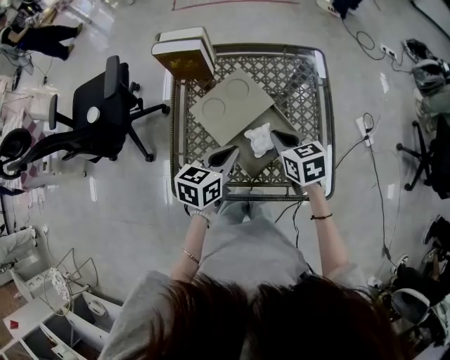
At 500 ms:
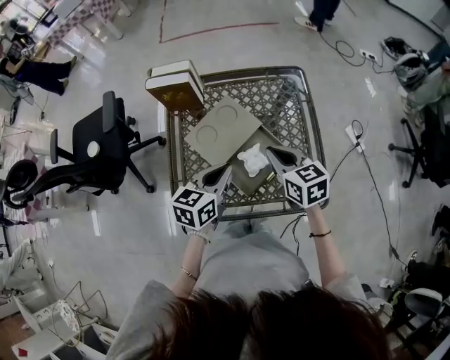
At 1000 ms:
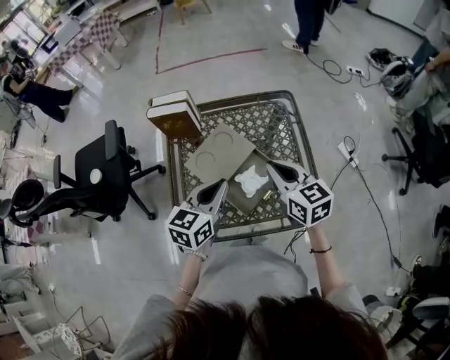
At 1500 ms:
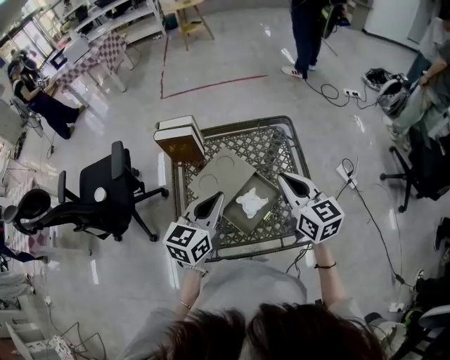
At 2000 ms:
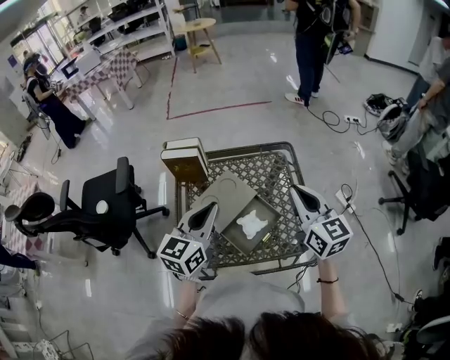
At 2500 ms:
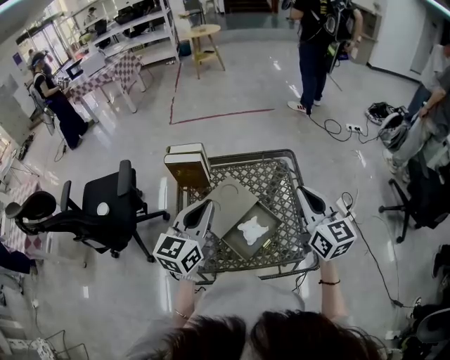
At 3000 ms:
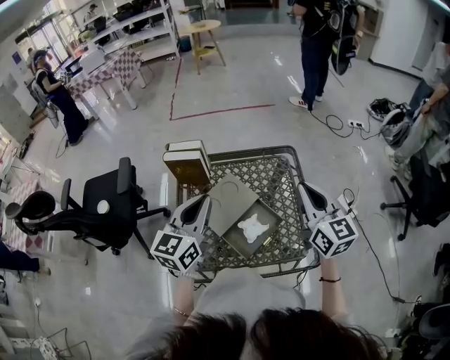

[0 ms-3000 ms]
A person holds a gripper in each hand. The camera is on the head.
0 ms to 1500 ms: The grippers both shift upward by roughly 15 cm. The left gripper changes its angle by some 20 degrees. Meanwhile the right gripper turns by approximately 30 degrees.
1500 ms to 3000 ms: Both grippers move upward, about 5 cm.

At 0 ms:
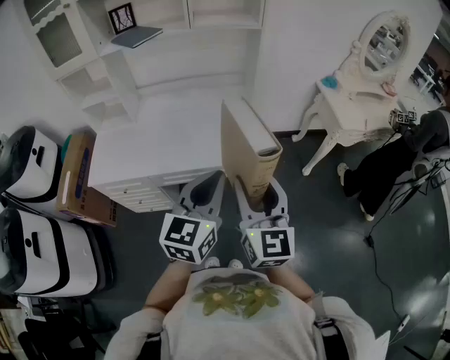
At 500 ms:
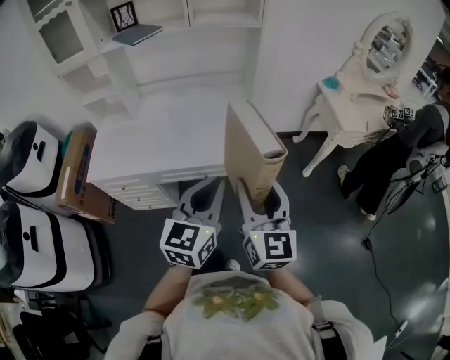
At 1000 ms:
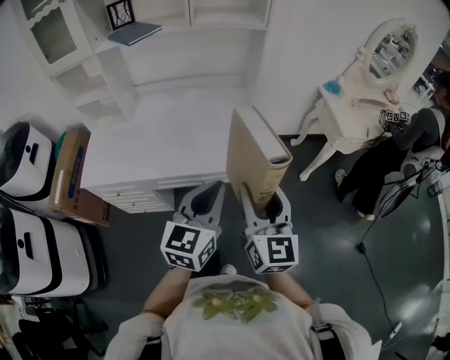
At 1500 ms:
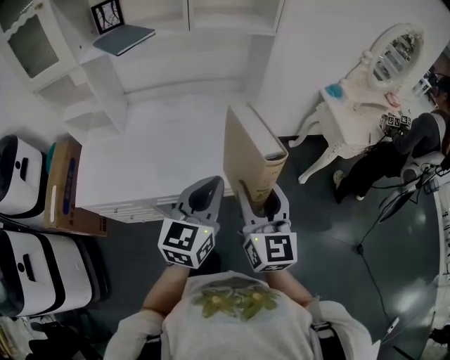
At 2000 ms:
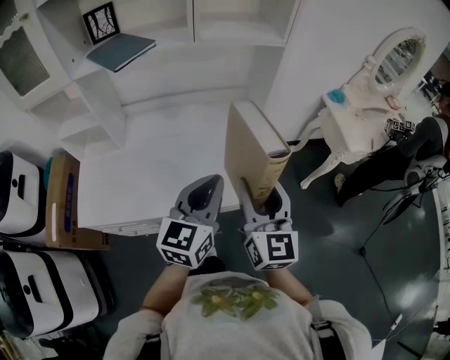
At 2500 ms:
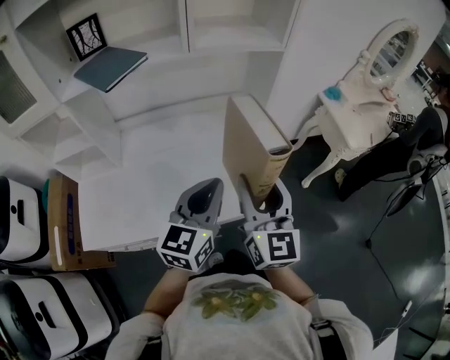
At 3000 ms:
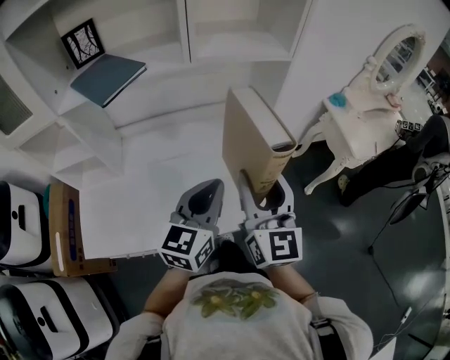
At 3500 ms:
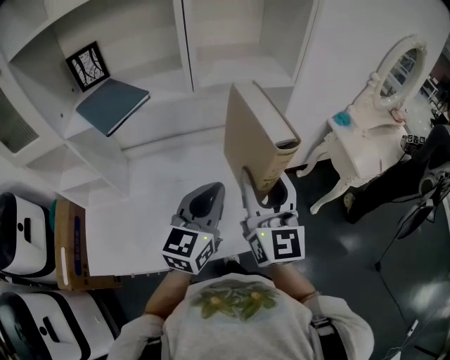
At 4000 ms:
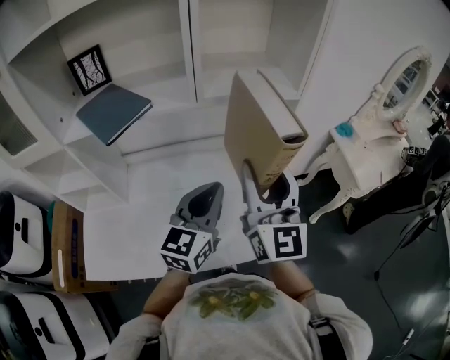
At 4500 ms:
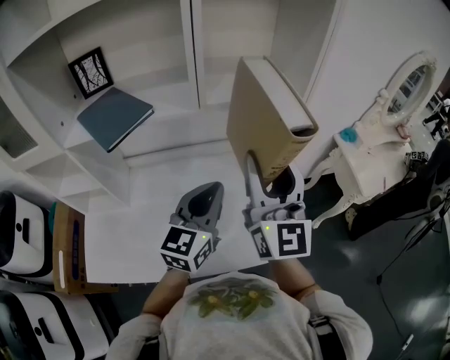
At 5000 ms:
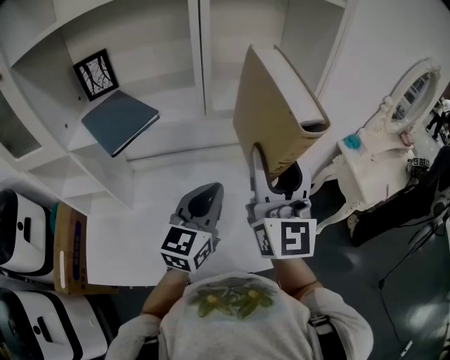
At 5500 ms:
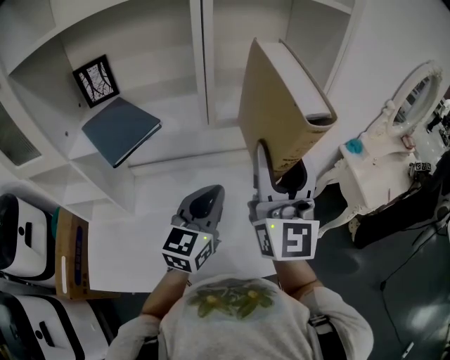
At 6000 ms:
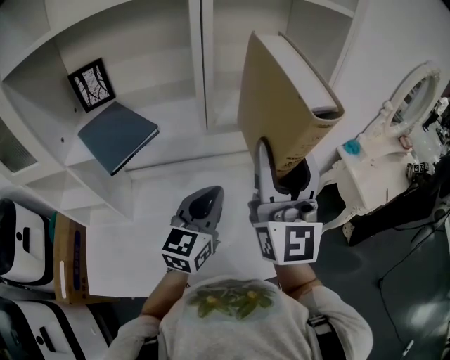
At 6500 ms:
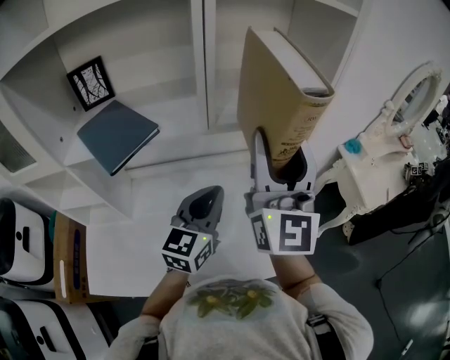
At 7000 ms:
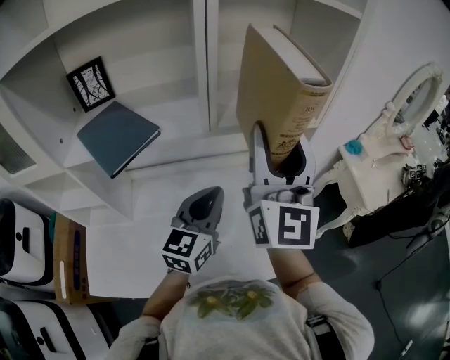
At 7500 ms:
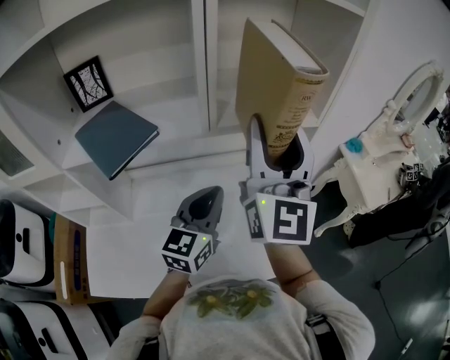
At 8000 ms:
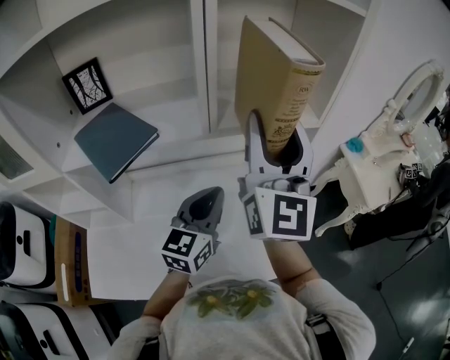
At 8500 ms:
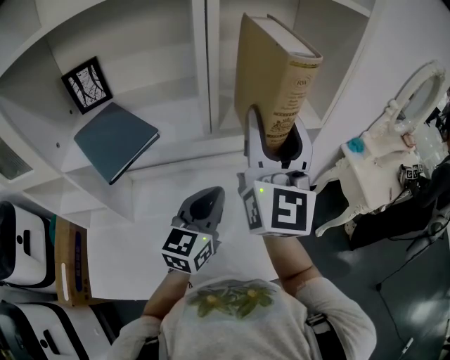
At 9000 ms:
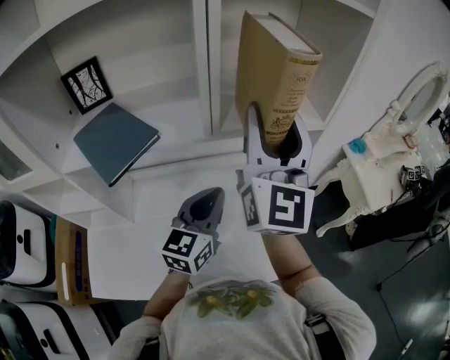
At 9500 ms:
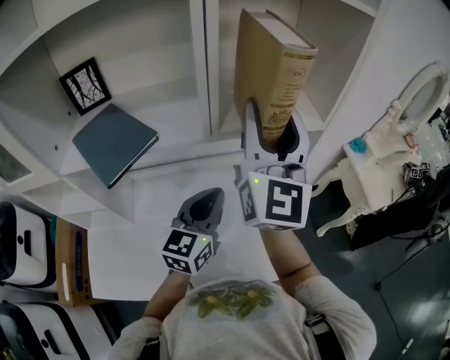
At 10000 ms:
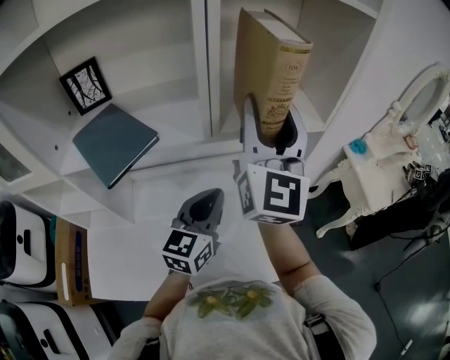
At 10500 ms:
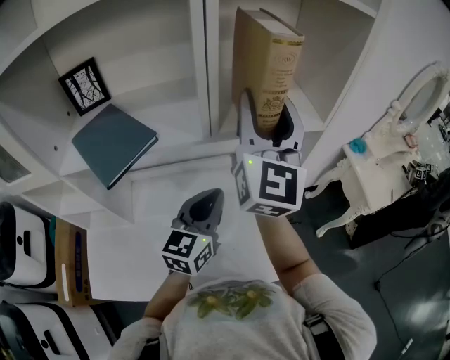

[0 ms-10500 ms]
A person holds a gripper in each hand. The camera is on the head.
0 ms to 2000 ms: The right gripper moves forward, some 20 cm, while the left gripper heads forward and to the left, covering some 25 cm.
2000 ms to 4000 ms: The right gripper travels forward and upward by roughly 20 cm. The left gripper is displaced forward by approximately 20 cm.
4000 ms to 6500 ms: The left gripper goes roughly 5 cm forward, while the right gripper is displaced upward and forward by approximately 10 cm.
6500 ms to 8500 ms: The right gripper shifts by approximately 5 cm.
8500 ms to 10500 ms: The right gripper shifts by some 5 cm.

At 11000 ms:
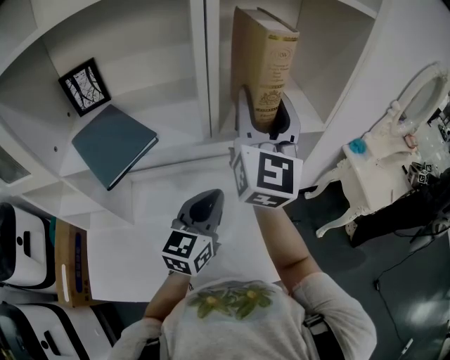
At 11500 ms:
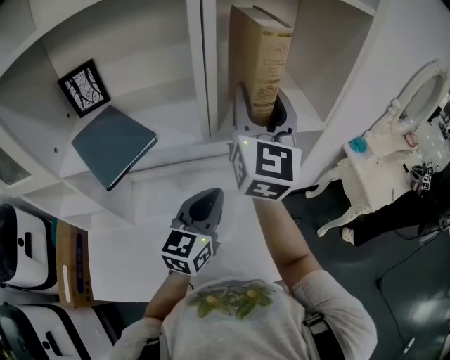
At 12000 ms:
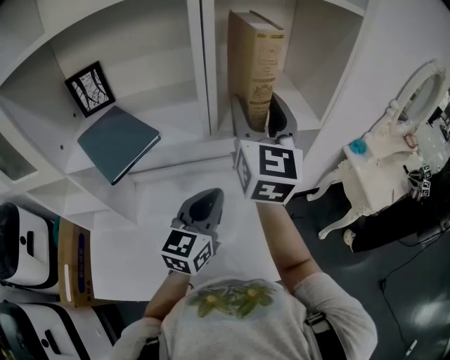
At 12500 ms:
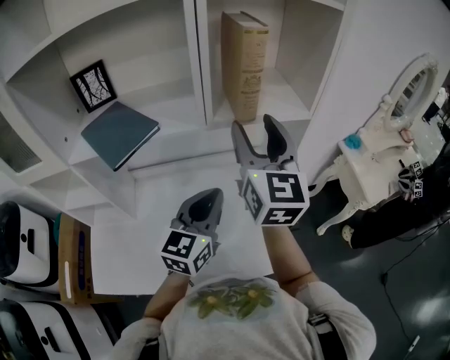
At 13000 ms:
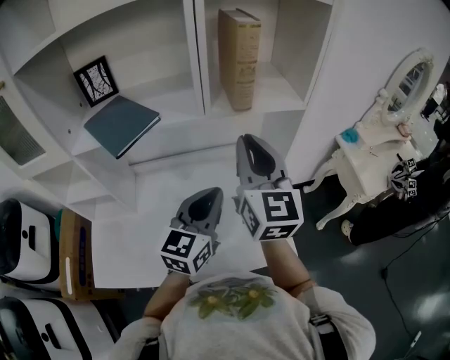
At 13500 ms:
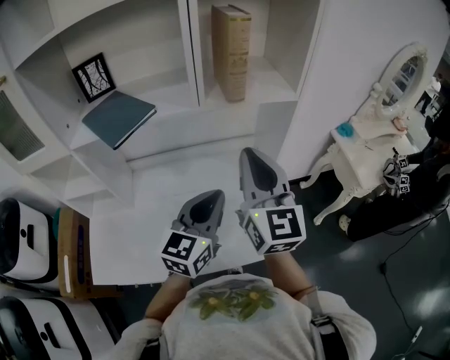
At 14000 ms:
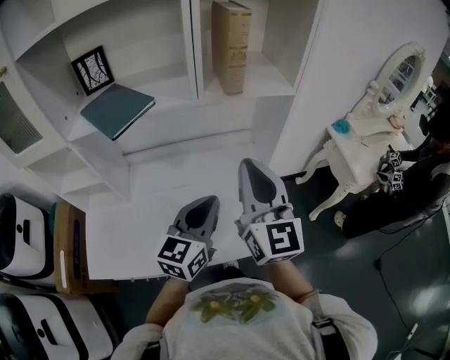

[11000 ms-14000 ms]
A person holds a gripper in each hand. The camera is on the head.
11000 ms to 12500 ms: Both grippers move backward, about 5 cm.
12500 ms to 14000 ms: The right gripper goes approximately 15 cm backward and downward, and closes its fingers, while the left gripper is displaced backward by some 10 cm.

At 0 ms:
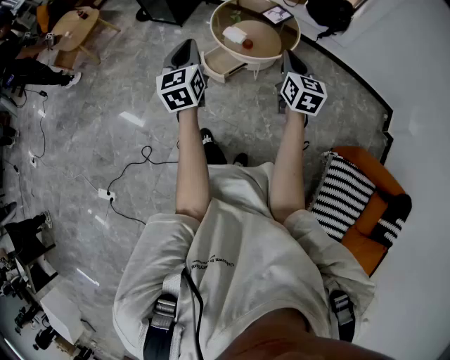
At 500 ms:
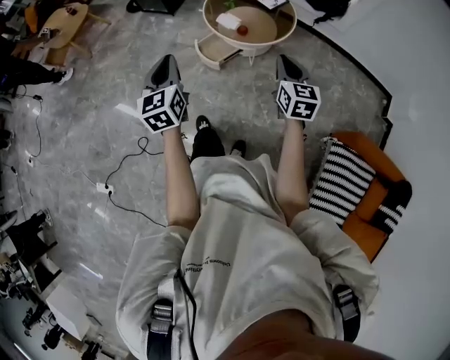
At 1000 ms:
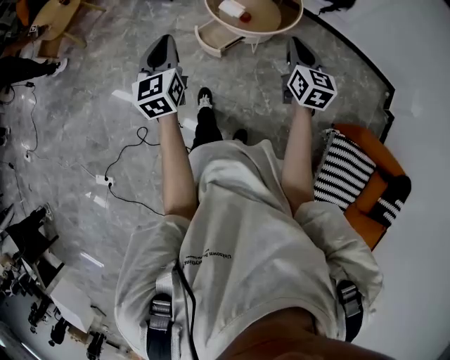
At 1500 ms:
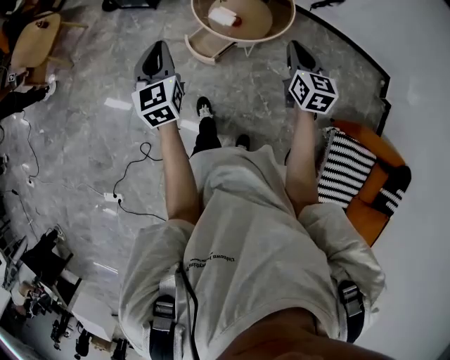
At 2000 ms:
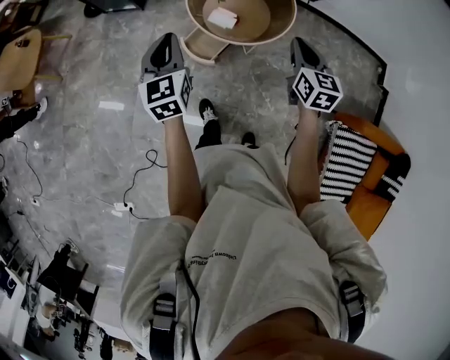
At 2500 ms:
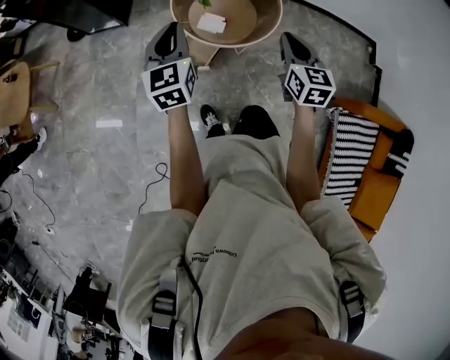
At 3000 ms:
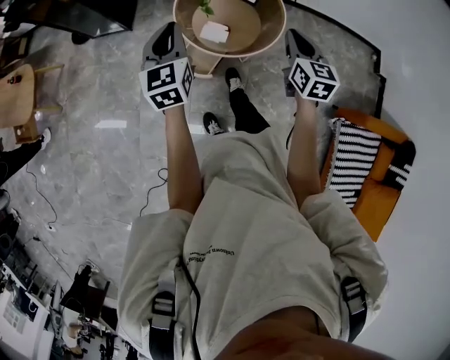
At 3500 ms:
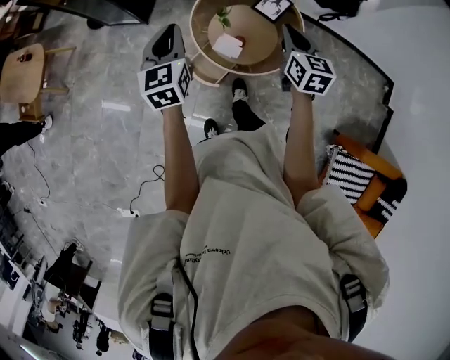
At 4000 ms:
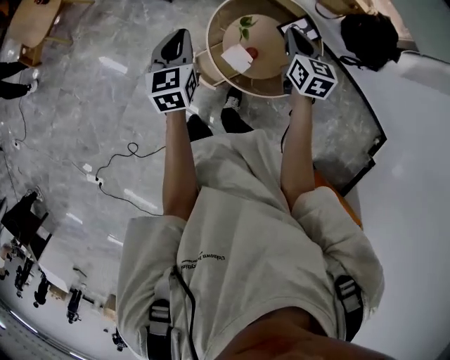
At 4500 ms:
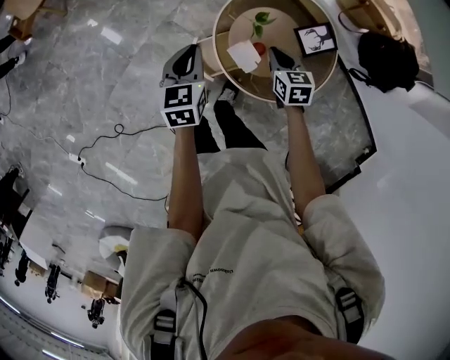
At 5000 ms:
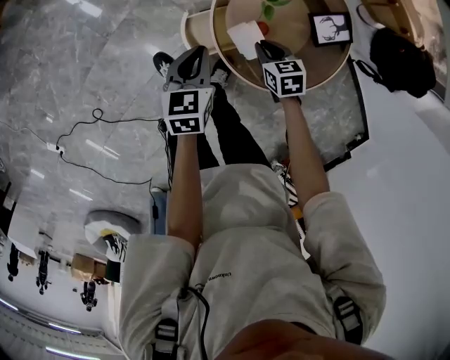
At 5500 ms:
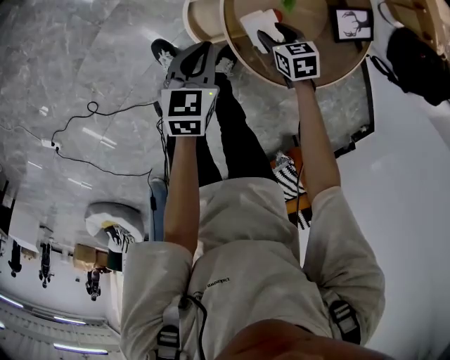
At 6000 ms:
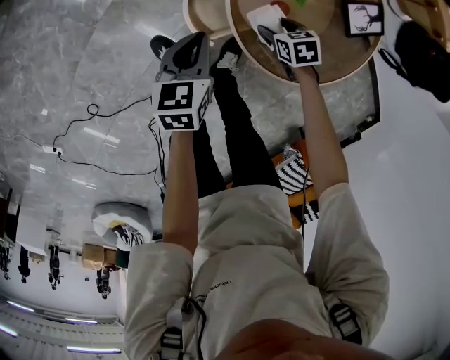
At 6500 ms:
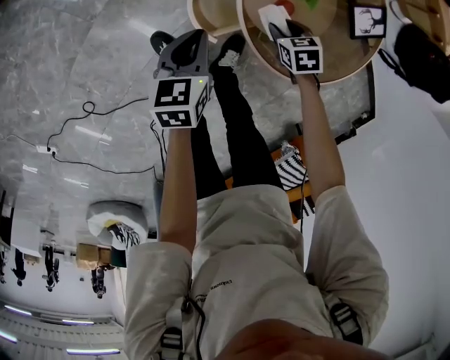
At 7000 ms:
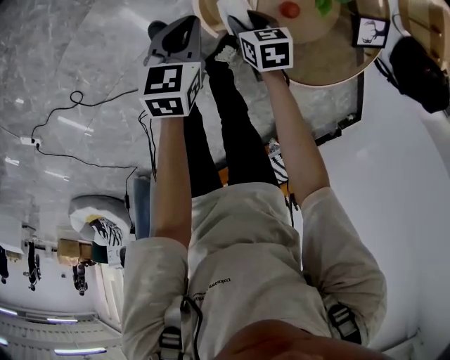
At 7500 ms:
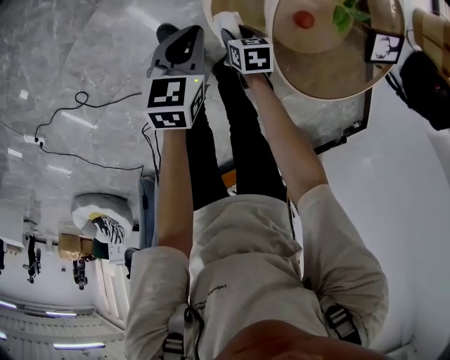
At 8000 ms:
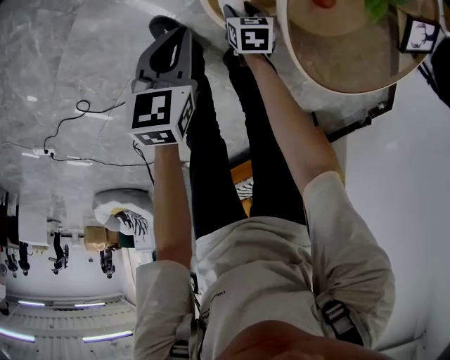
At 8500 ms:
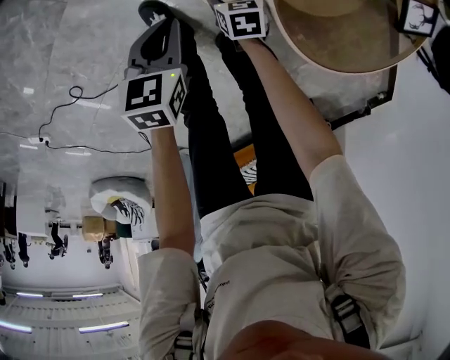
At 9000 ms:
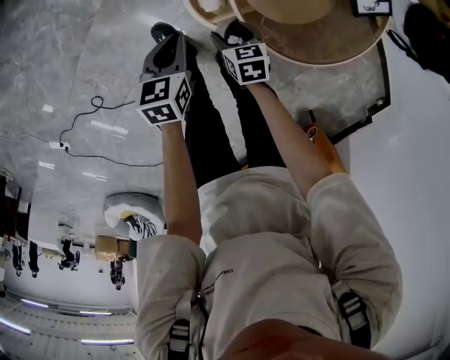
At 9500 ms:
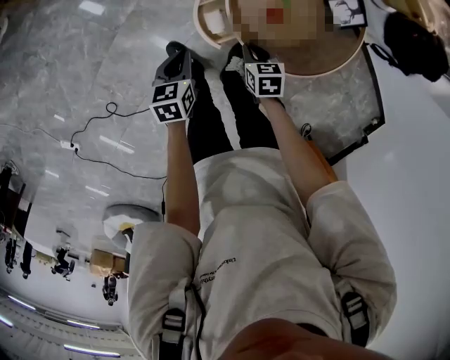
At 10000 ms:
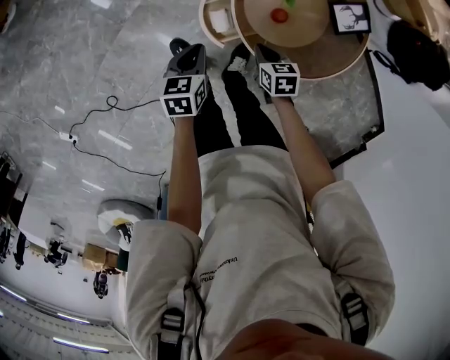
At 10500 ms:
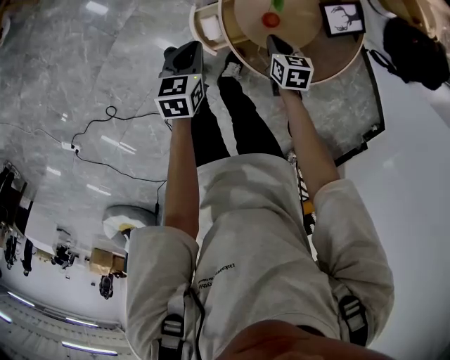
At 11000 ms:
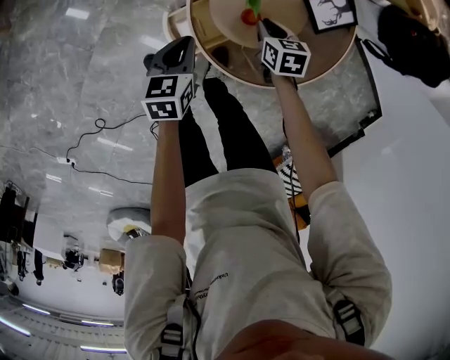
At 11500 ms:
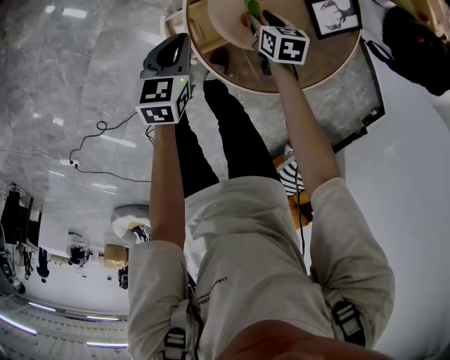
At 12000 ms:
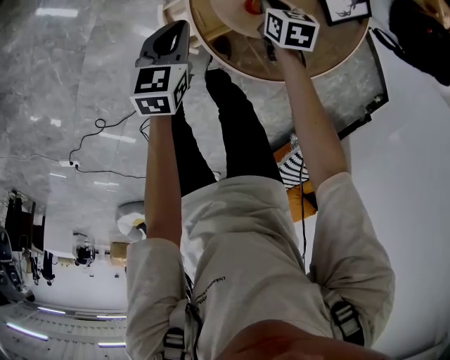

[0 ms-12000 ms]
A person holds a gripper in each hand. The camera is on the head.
0 ms to 2000 ms: The grippers both shift forward by roughly 25 cm.
2000 ms to 4000 ms: The right gripper moves some 40 cm, and changes its angle by approximately 20 degrees, while the left gripper shifts by approximately 30 cm.
4000 ms to 6000 ms: Both grippers travel together downward, some 50 cm. The left gripper changes its angle by some 30 degrees; the right gripper tilts its fingers some 40 degrees downward, and opens up.
6000 ms to 8000 ms: Both grippers move downward and to the left, approximately 25 cm. The right gripper closes its fingers.
8000 ms to 10000 ms: The two grippers go roughly 35 cm upward. The right gripper closes.
10000 ms to 12000 ms: Both grippers move forward, downward and to the right, roughly 25 cm. The right gripper opens, then closes once more.
